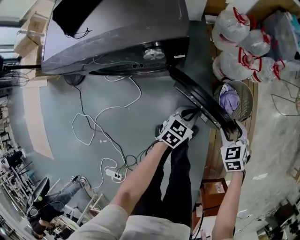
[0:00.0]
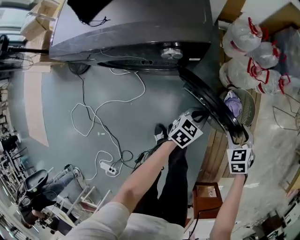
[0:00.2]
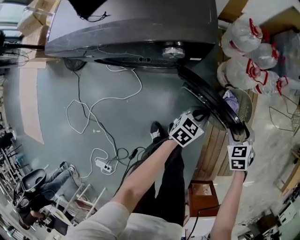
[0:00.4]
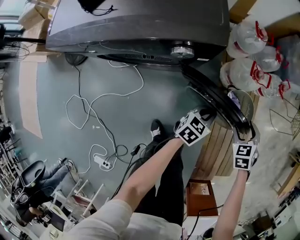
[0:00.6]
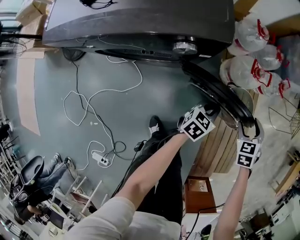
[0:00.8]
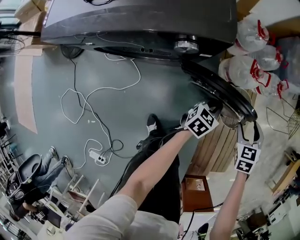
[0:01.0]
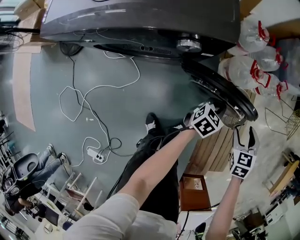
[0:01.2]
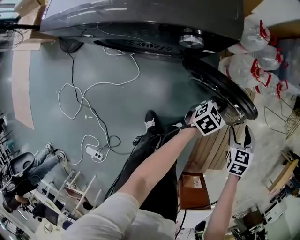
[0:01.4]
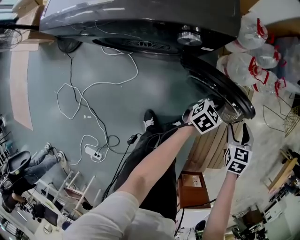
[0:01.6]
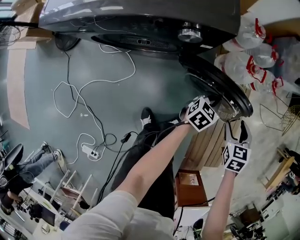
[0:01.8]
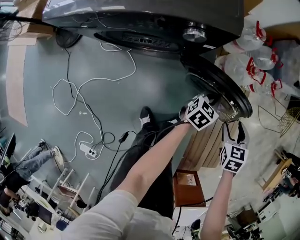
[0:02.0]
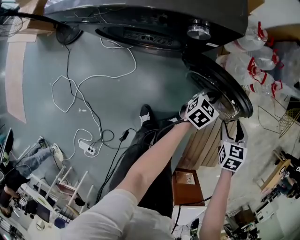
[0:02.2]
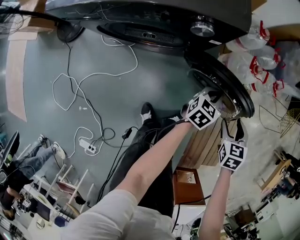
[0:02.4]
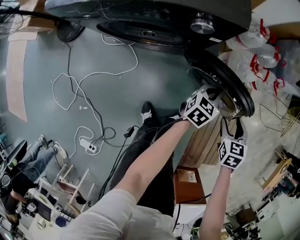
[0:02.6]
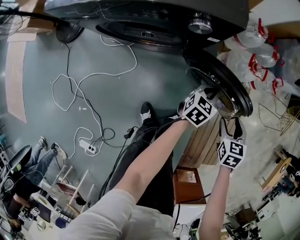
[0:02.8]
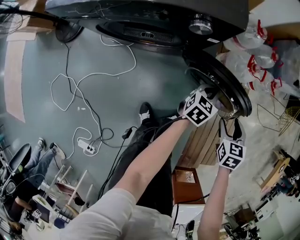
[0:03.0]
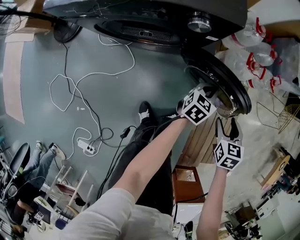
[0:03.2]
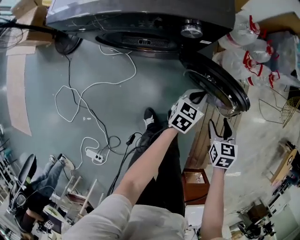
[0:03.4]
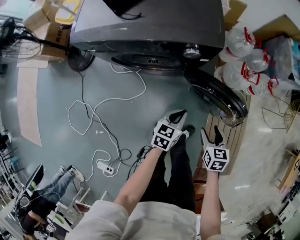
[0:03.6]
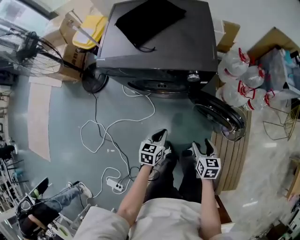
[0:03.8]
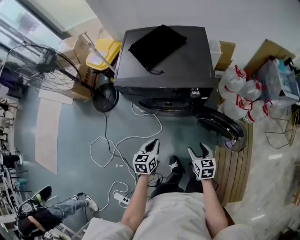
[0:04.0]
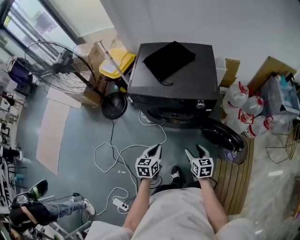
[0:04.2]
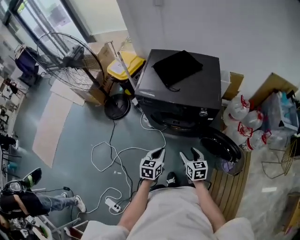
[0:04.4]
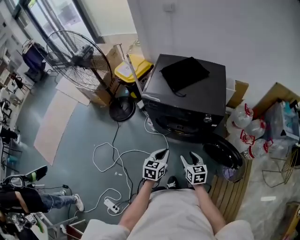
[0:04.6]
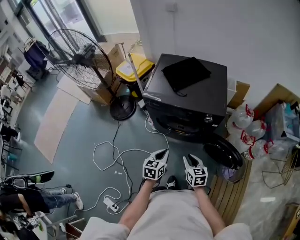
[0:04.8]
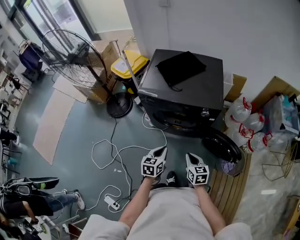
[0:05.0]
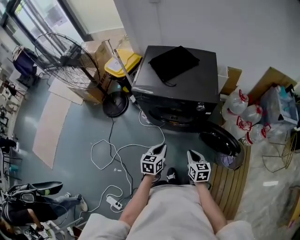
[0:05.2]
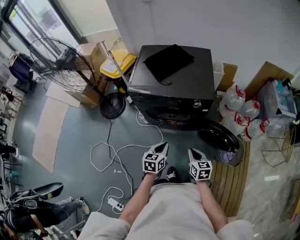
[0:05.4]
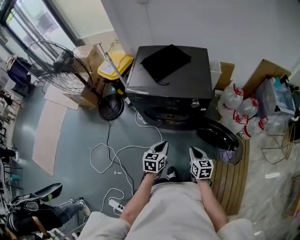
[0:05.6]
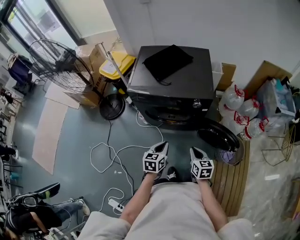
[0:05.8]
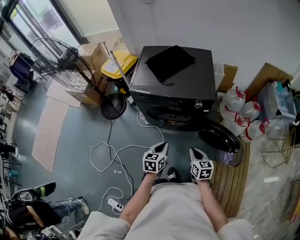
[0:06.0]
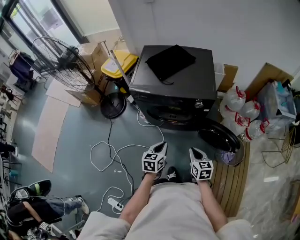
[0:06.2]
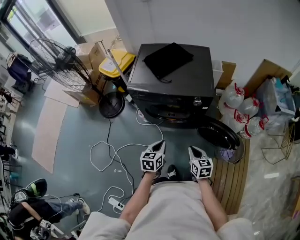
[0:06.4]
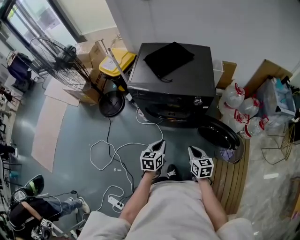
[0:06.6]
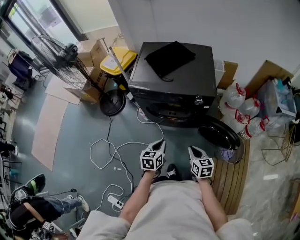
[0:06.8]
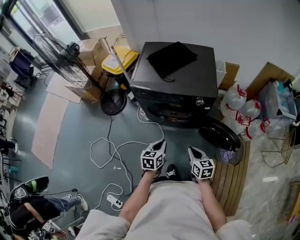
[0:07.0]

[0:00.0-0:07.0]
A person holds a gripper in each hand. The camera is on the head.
0:00.0 to 0:01.4: The left gripper travels forward by some 10 cm.
0:01.4 to 0:02.8: The right gripper moves about 5 cm; the left gripper travels to the left by about 5 cm.
0:02.8 to 0:04.2: The right gripper moves about 35 cm, and changes its angle by some 30 degrees; the left gripper ends up about 50 cm from where it was, and swivels roughly 30 degrees.
0:04.2 to 0:05.6: The right gripper reaches roughly 5 cm to the left, then returns, and closes; the left gripper heads to the right, covering some 5 cm.
0:05.6 to 0:07.0: The grippers move only a little.

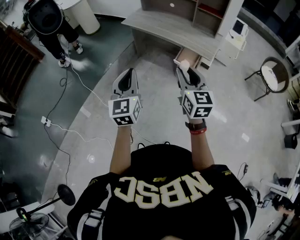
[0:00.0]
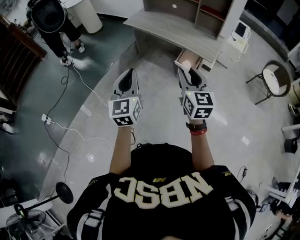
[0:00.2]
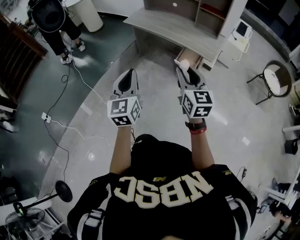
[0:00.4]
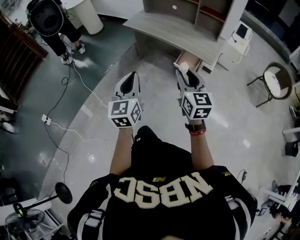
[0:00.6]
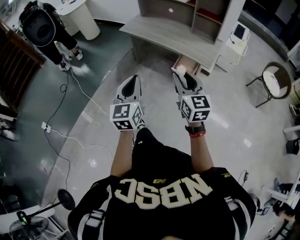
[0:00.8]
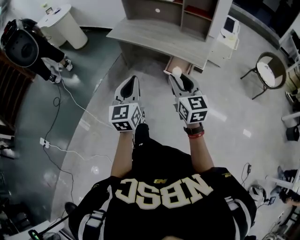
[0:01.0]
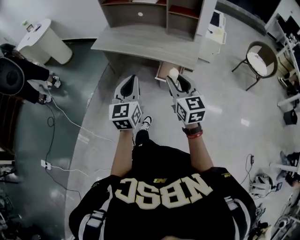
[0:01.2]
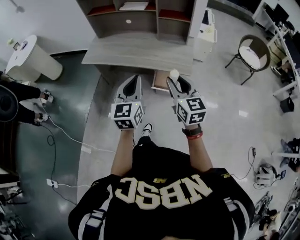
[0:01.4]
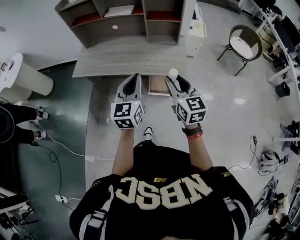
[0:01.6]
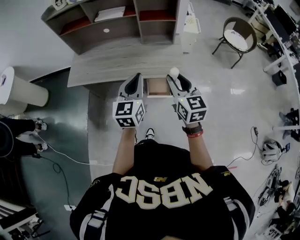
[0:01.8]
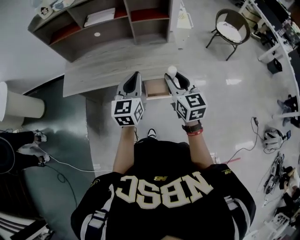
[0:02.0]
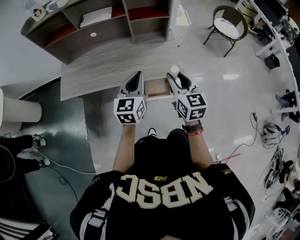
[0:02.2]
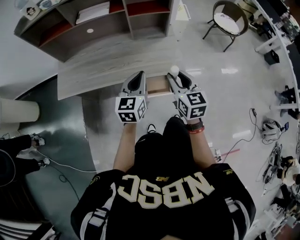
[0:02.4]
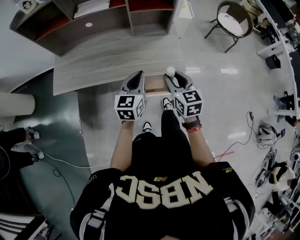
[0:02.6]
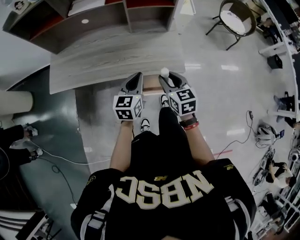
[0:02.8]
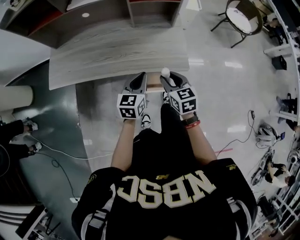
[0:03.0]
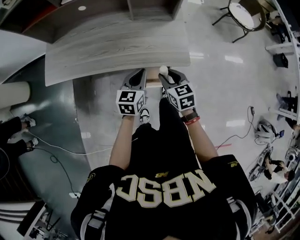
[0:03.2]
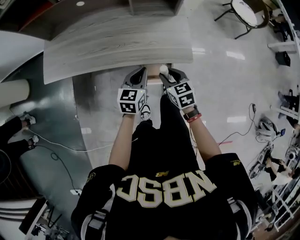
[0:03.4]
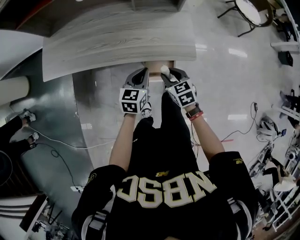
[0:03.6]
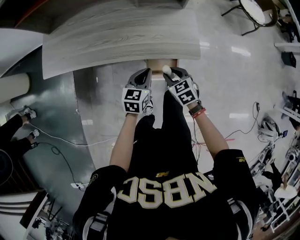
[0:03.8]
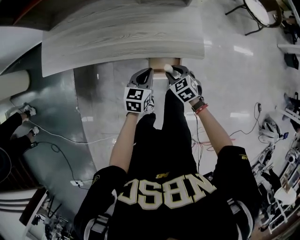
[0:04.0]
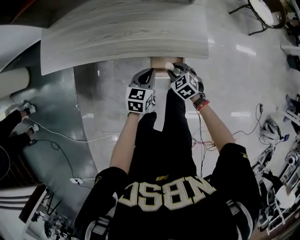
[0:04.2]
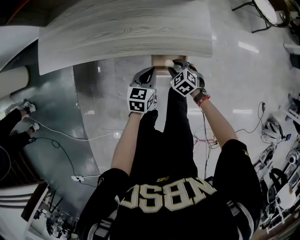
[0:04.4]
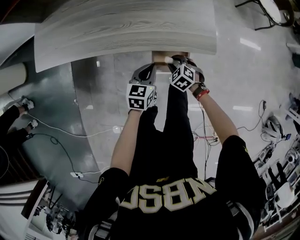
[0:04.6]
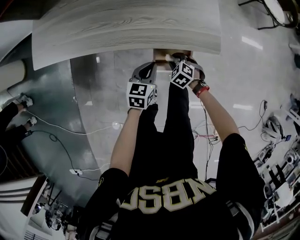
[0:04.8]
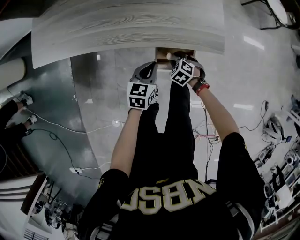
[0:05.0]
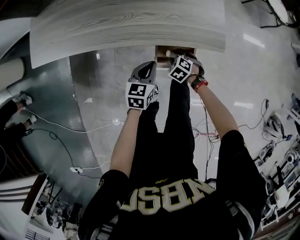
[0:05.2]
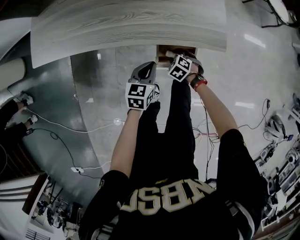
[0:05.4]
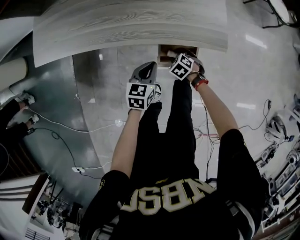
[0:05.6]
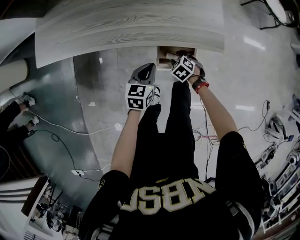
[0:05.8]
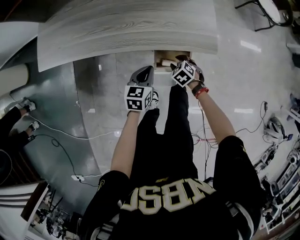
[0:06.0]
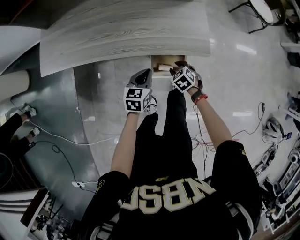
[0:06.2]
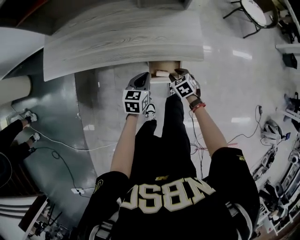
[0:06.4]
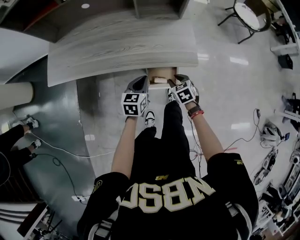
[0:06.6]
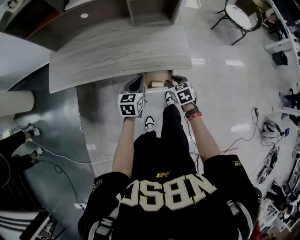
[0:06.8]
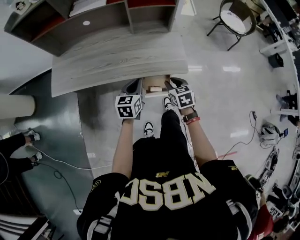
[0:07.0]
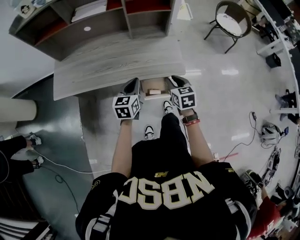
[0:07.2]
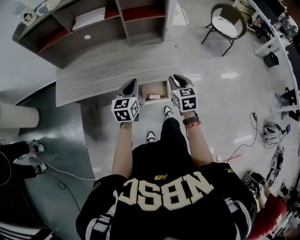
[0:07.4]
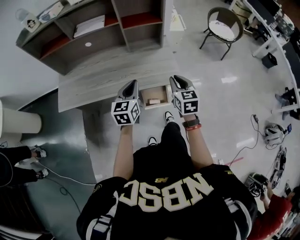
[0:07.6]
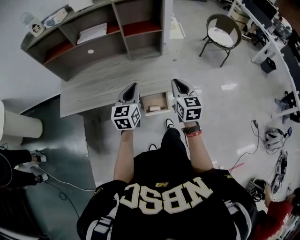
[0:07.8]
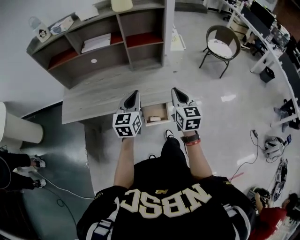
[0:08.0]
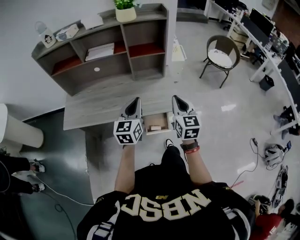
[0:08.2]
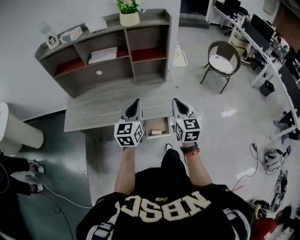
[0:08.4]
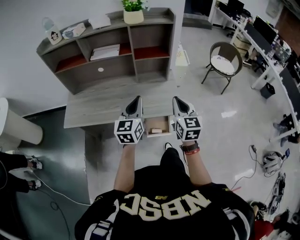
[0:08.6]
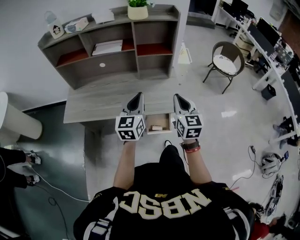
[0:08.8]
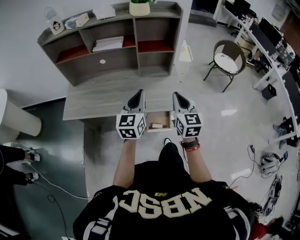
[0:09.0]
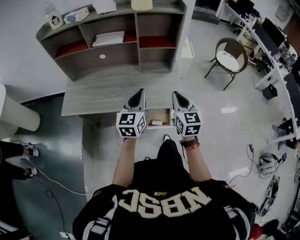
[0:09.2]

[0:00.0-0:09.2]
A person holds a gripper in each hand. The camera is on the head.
0:00.0 to 0:01.6: The right gripper moves some 30 cm, and rotates approximately 20 degrees. The left gripper ends up roughly 40 cm from where it was, and swivels some 40 degrees.
0:01.6 to 0:03.0: Both grippers travel together downward and forward, approximately 25 cm. The left gripper turns by about 30 degrees. The right gripper rotates about 20 degrees.
0:03.0 to 0:04.6: The two grippers go roughly 25 cm downward. The right gripper rotates approximately 50 degrees.
0:04.6 to 0:06.2: The right gripper moves about 10 cm downward and comes back.
0:06.2 to 0:07.6: Both grippers travel together upward, about 30 cm. The right gripper tips its fingers upward by approximately 40 degrees, and closes. The left gripper turns by about 20 degrees.
0:07.6 to 0:09.2: Both grippers travel together upward, about 10 cm.

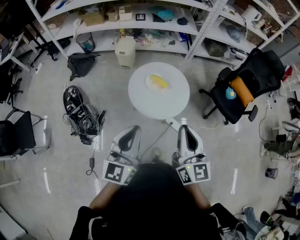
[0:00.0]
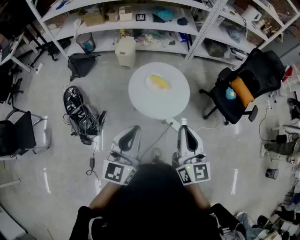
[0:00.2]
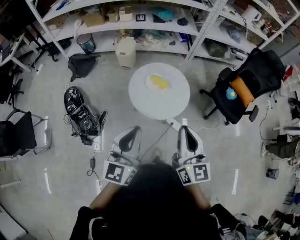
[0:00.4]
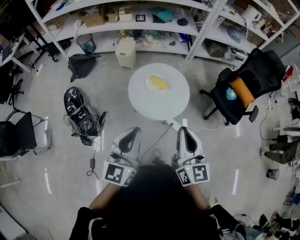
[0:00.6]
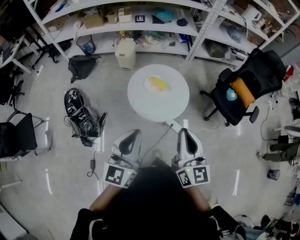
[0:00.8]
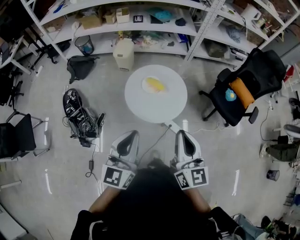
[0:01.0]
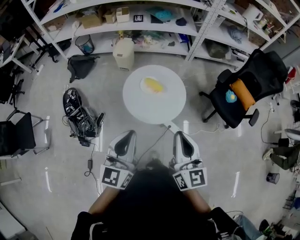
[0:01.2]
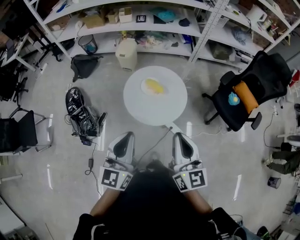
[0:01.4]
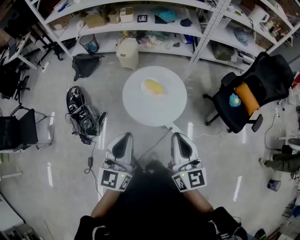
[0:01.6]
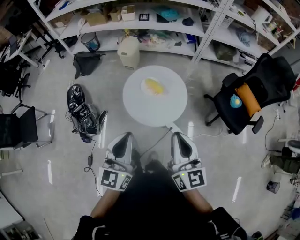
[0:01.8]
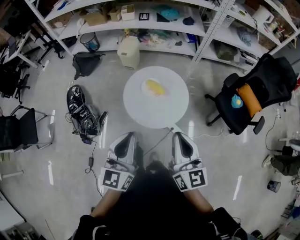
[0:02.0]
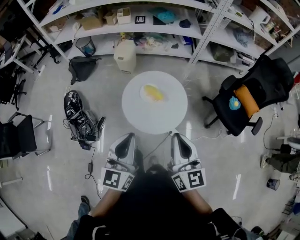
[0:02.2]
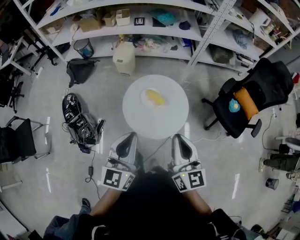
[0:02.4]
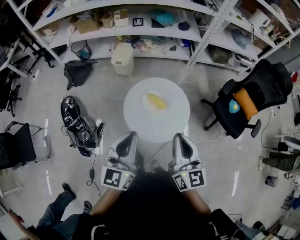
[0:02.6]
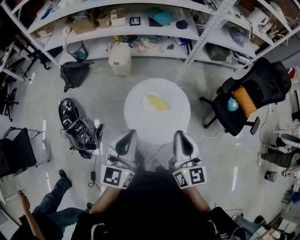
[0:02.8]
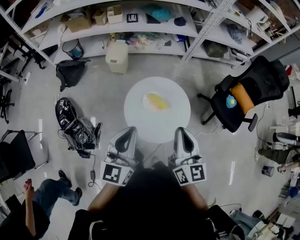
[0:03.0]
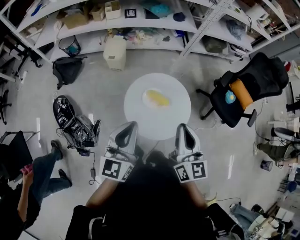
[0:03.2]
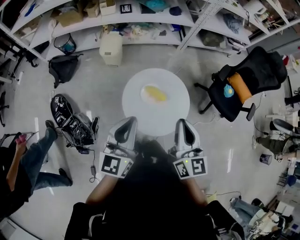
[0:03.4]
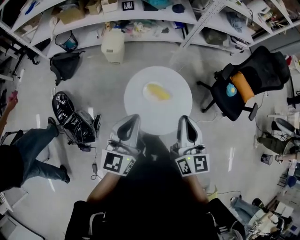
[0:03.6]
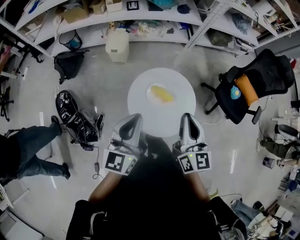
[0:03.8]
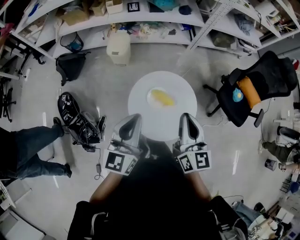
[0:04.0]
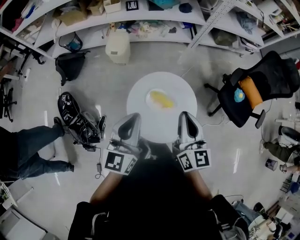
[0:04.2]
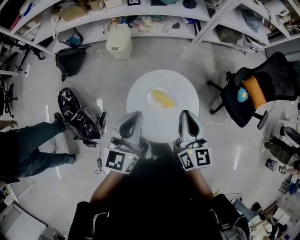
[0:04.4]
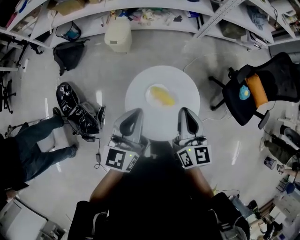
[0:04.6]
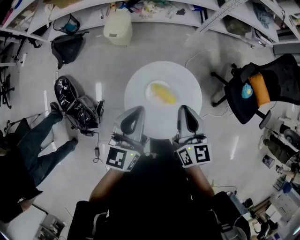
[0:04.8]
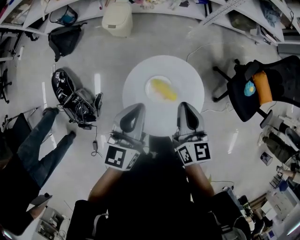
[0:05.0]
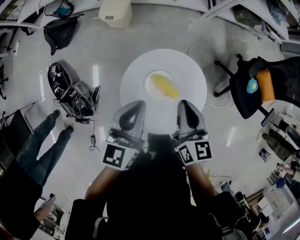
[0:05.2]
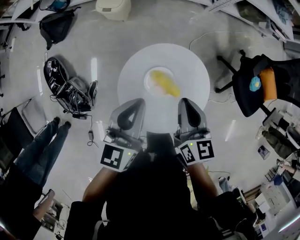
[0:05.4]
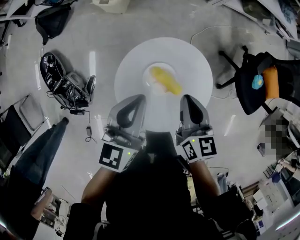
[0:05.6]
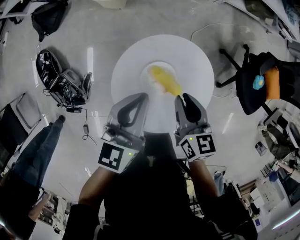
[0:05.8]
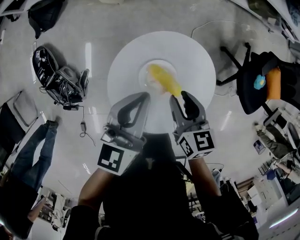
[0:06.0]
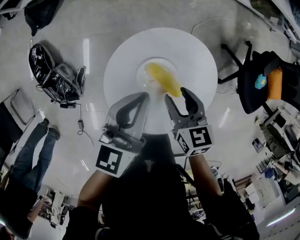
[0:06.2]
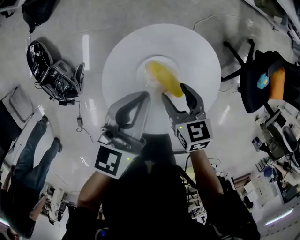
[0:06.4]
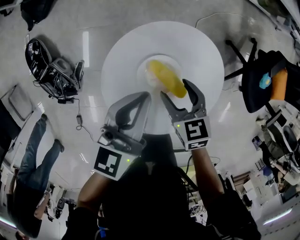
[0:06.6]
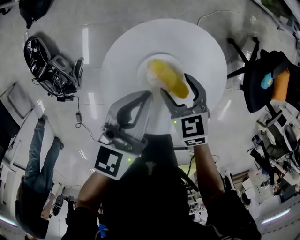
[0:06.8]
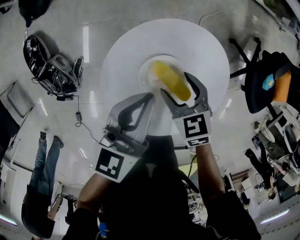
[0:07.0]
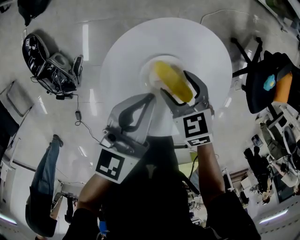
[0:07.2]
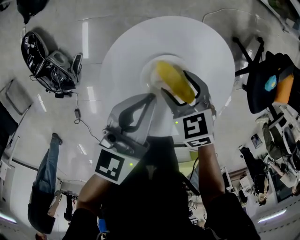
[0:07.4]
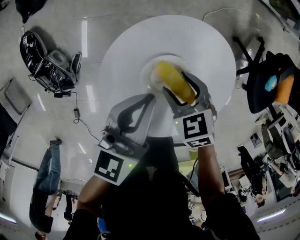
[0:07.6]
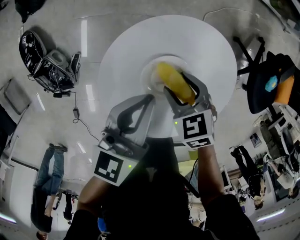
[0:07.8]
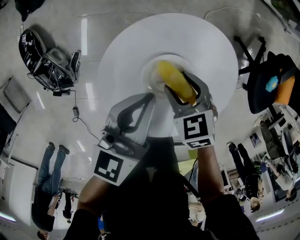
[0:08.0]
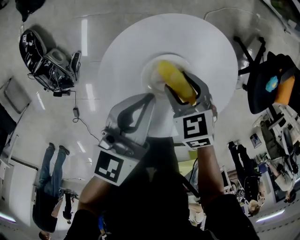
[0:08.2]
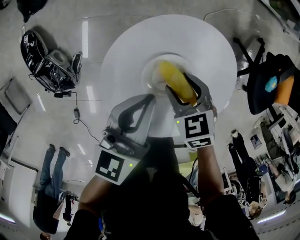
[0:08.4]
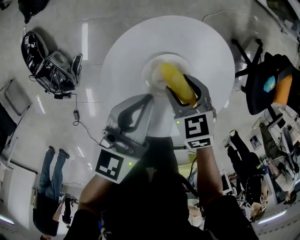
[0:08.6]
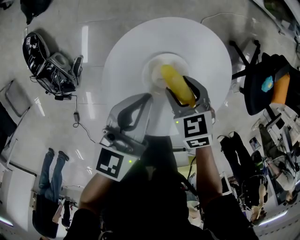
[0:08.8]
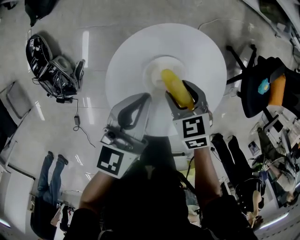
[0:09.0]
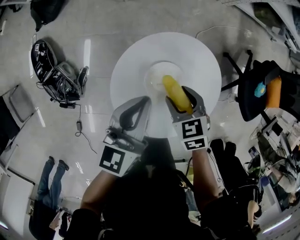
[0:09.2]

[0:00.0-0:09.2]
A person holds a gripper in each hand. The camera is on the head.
0:00.0 to 0:01.6: Both grippers move to the right, some 5 cm.
0:01.6 to 0:03.0: Both grippers move forward and to the left, about 20 cm.
0:03.0 to 0:04.6: The left gripper goes some 15 cm forward; the right gripper goes some 20 cm forward and downward.
0:04.6 to 0:06.2: Both grippers travel together downward, roughly 25 cm. The right gripper tilts its fingers about 30 degrees downward, and opens its fingers.
0:06.2 to 0:07.6: The two grippers go about 10 cm downward. The right gripper turns by roughly 30 degrees.
0:07.6 to 0:09.2: Both grippers travel together upward, about 5 cm.
